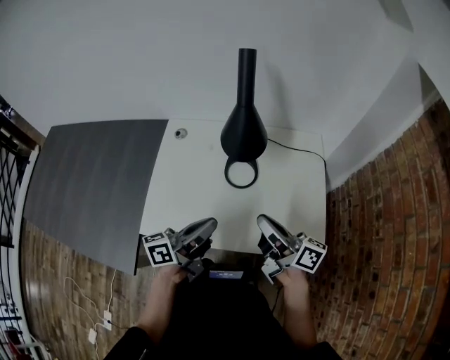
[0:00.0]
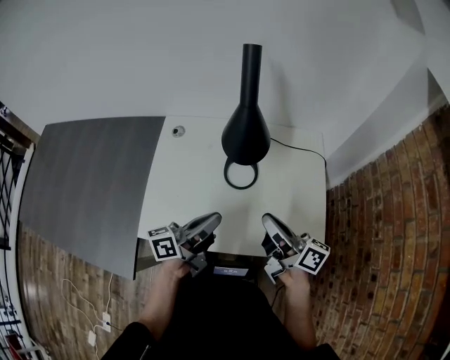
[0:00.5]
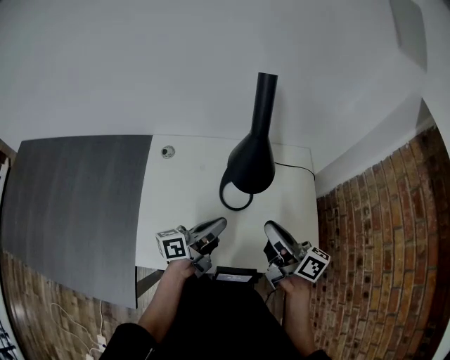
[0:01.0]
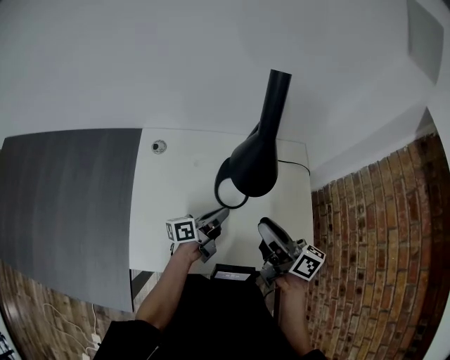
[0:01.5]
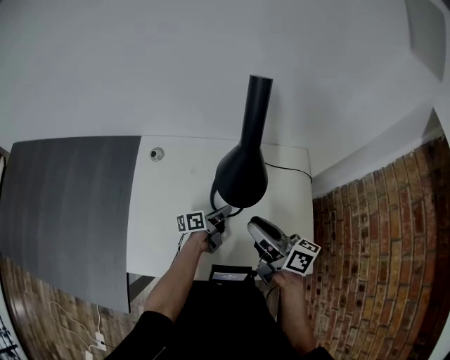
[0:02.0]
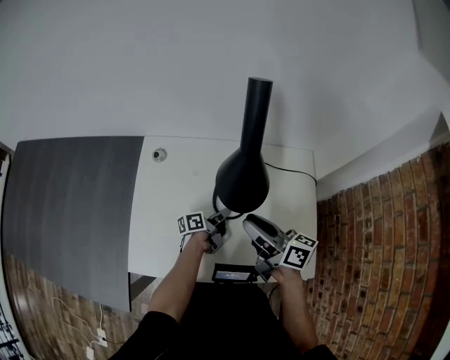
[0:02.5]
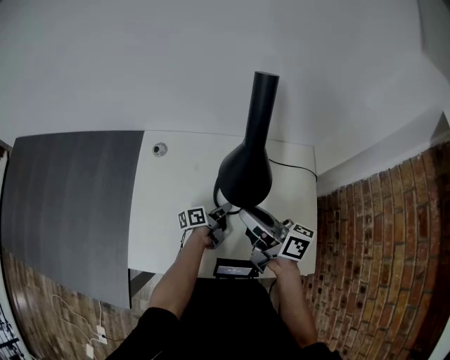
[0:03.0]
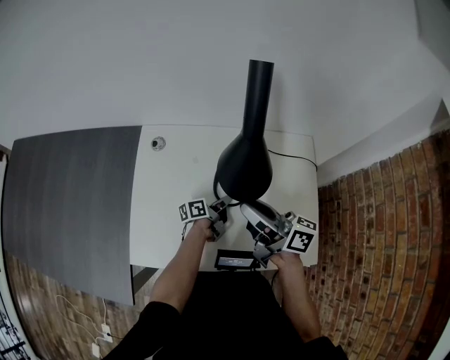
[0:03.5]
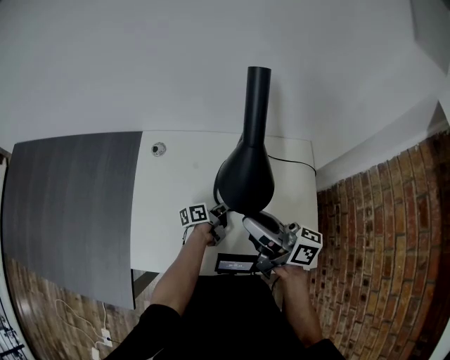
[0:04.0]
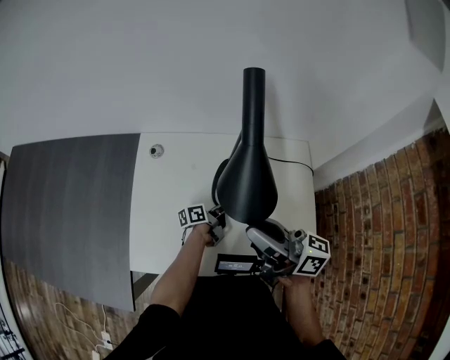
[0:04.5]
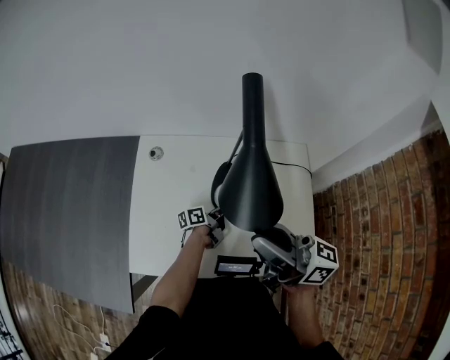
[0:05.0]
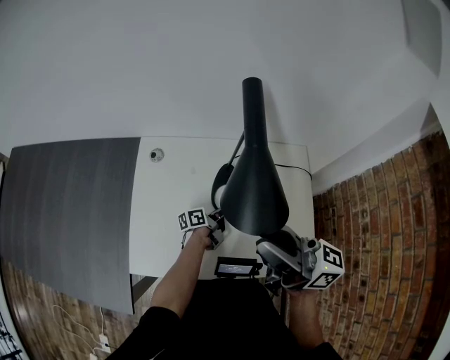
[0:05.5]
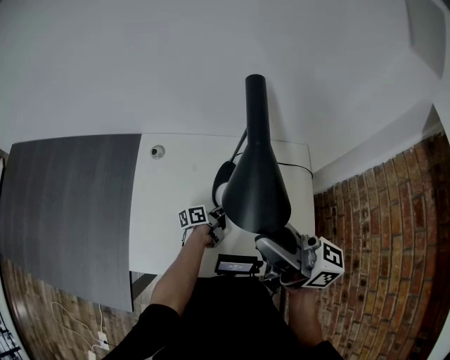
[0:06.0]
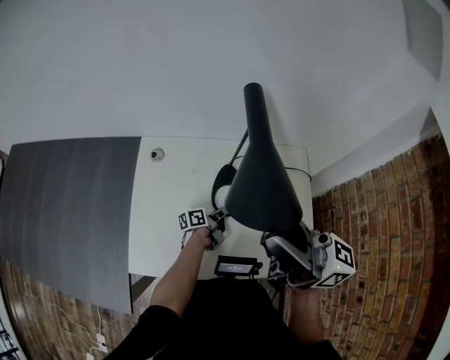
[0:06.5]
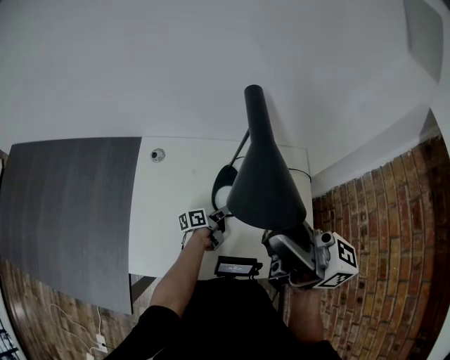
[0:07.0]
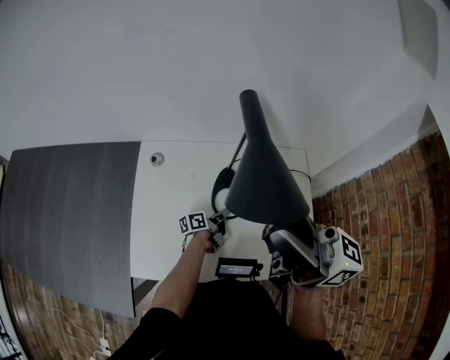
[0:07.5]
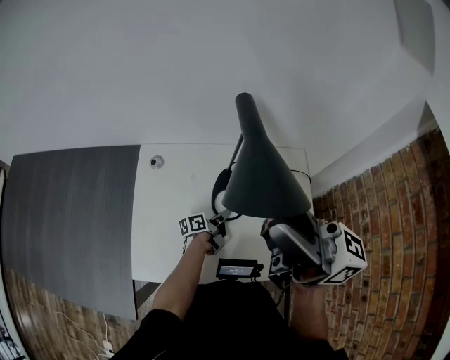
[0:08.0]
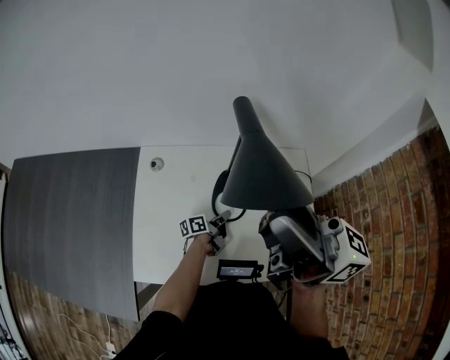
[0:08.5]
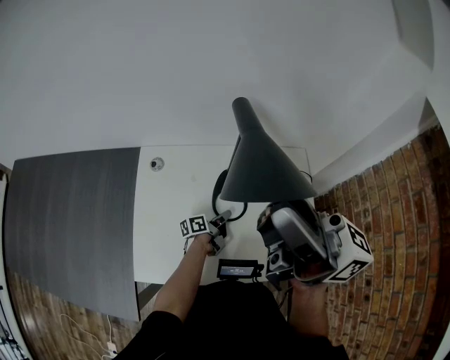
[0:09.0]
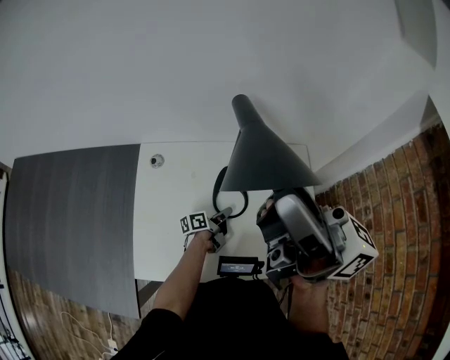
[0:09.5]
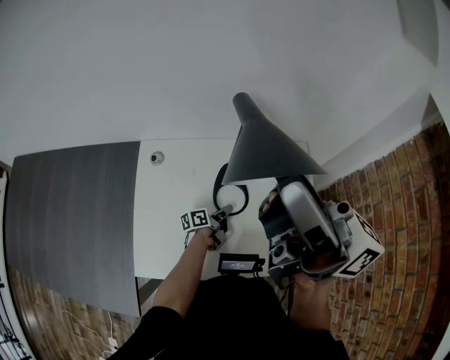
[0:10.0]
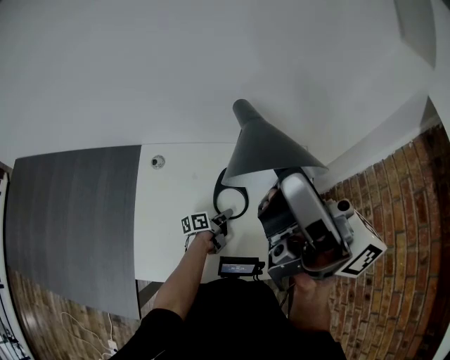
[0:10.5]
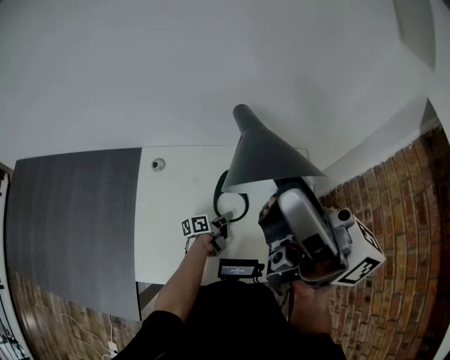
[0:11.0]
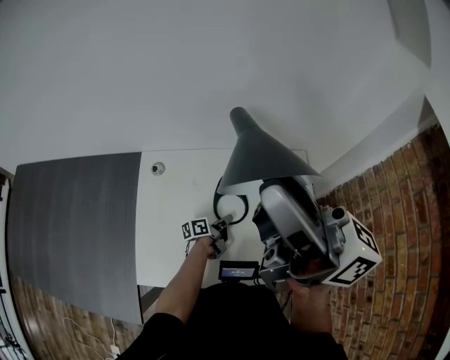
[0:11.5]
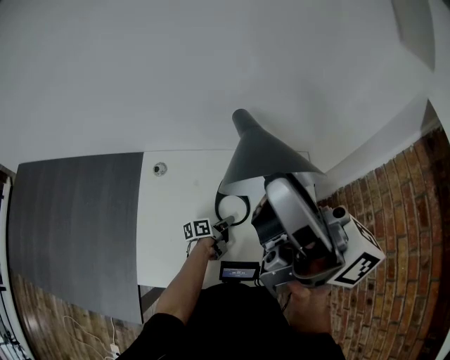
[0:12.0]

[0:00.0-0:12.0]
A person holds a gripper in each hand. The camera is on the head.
0:00.0 to 0:02.0: The right gripper heads forward, covering about 10 cm, and opens. Meanwhile the left gripper is displaced downward and forward by roughly 30 cm, and changes its angle by approximately 30 degrees.
0:02.0 to 0:04.0: The right gripper travels upward by roughly 5 cm.
0:04.0 to 0:06.0: The right gripper shifts roughly 10 cm upward.
0:06.0 to 0:08.0: The right gripper is displaced upward by roughly 10 cm.
0:08.0 to 0:10.0: The right gripper shifts by some 5 cm.
0:10.0 to 0:12.0: The grippers stay close to where they were, moving slightly.

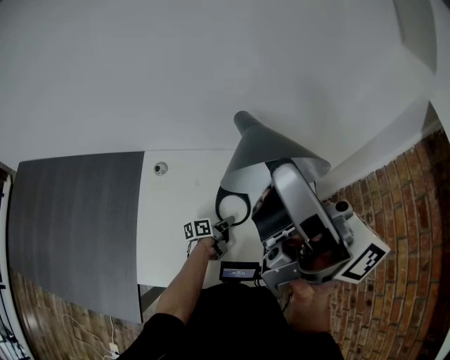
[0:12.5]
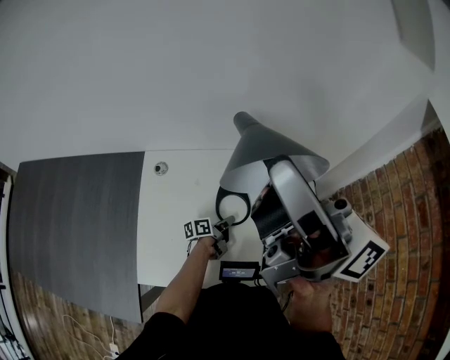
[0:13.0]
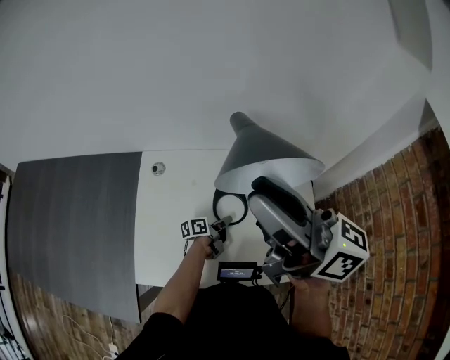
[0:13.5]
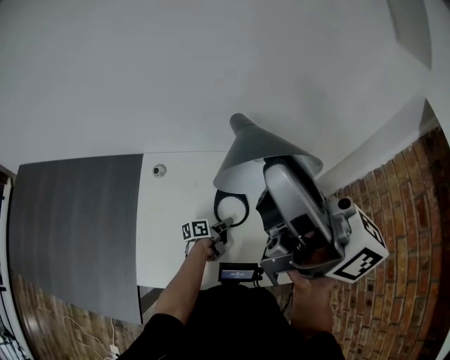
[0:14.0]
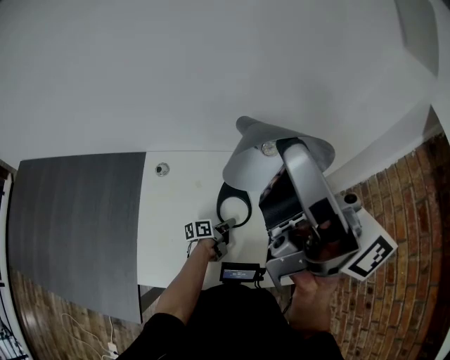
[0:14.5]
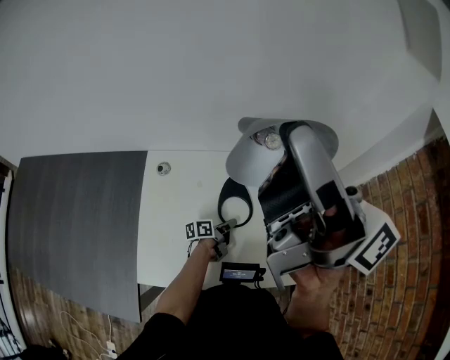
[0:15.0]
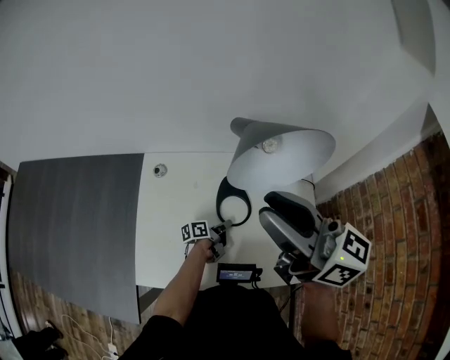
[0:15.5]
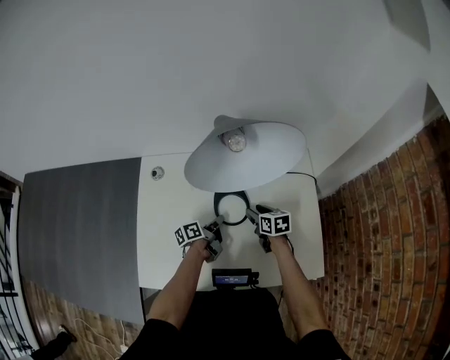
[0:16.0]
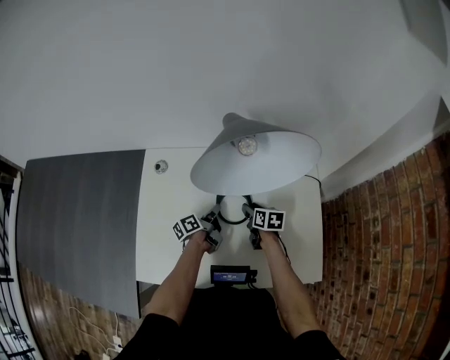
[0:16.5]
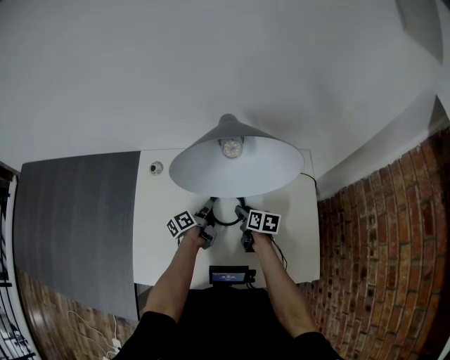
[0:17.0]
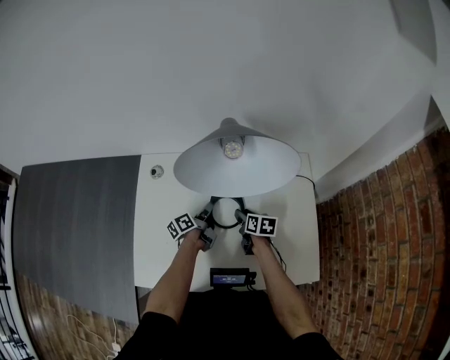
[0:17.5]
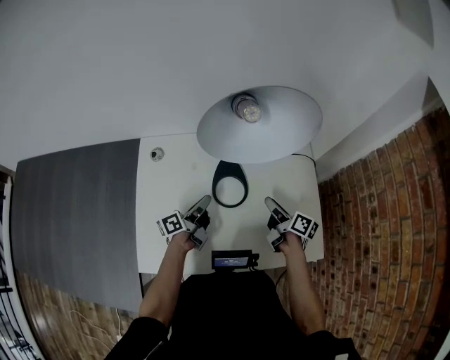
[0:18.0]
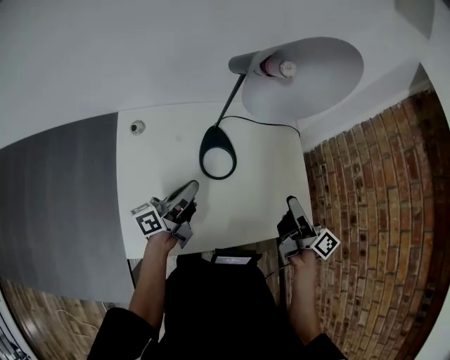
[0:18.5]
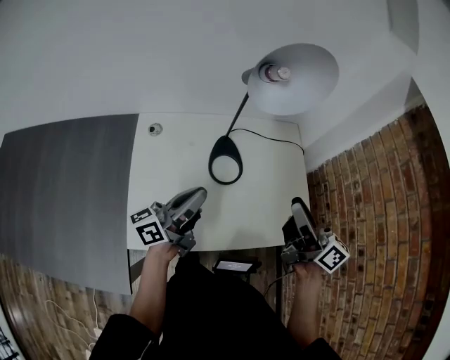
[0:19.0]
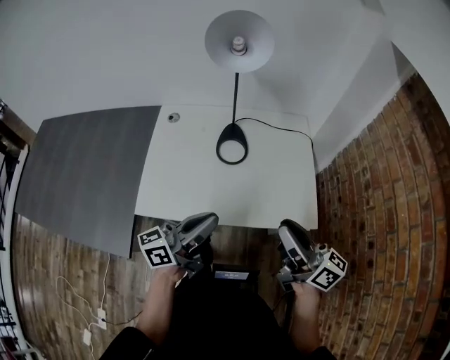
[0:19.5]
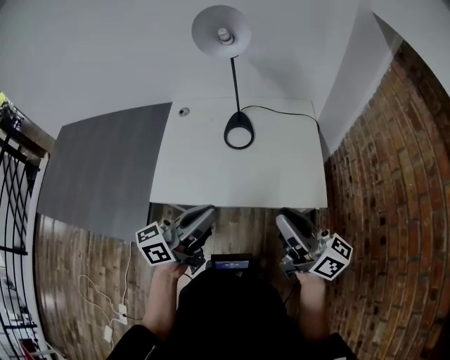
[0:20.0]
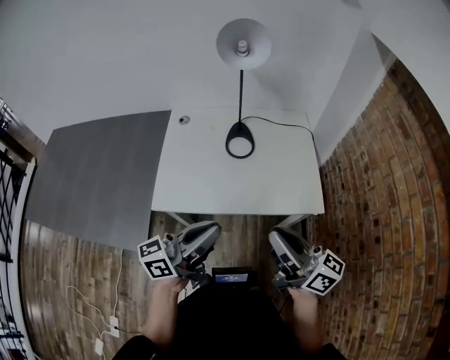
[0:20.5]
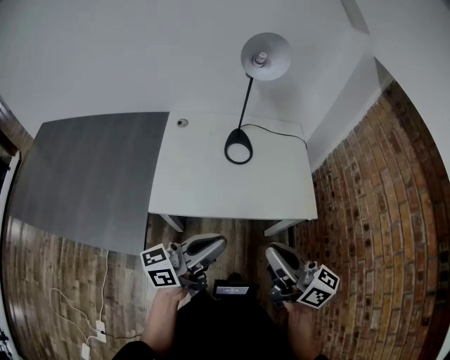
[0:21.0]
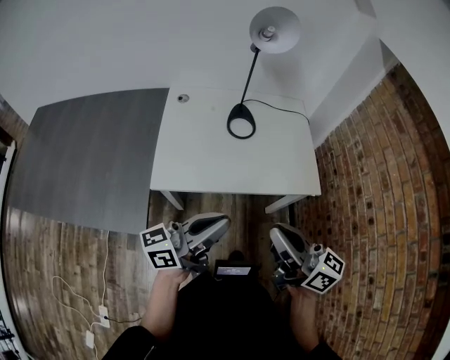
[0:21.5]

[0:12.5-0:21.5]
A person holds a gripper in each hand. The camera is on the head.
0:12.5 to 0:14.5: The right gripper moves about 5 cm downward and comes back.
0:14.5 to 0:17.0: The right gripper travels downward by roughly 60 cm, and tilts its fingers some 70 degrees downward. Meanwhile the left gripper heads to the left and forward, covering about 10 cm, and turns by some 20 degrees.
0:17.0 to 0:19.5: Both grippers travel together backward and upward, roughly 50 cm. The right gripper tips its fingers upward by roughly 50 degrees; the left gripper rotates about 50 degrees.
0:19.5 to 0:21.5: Both grippers move backward and to the left, about 15 cm.

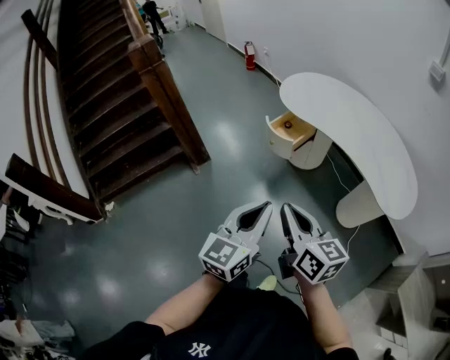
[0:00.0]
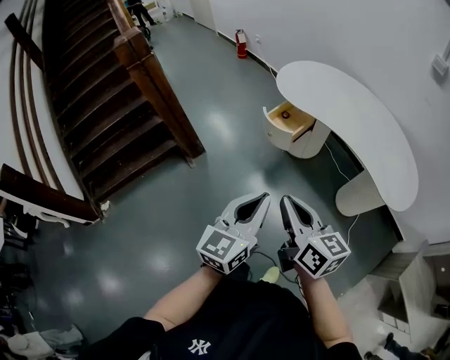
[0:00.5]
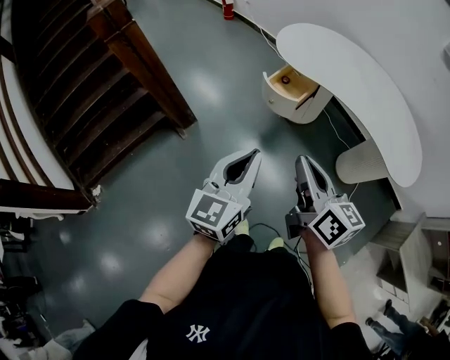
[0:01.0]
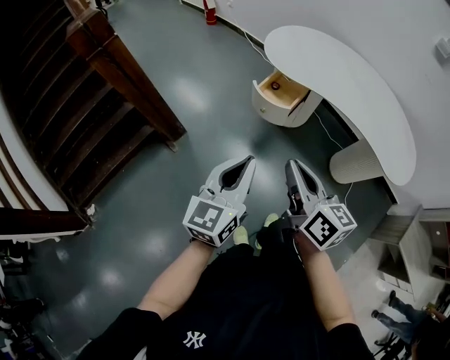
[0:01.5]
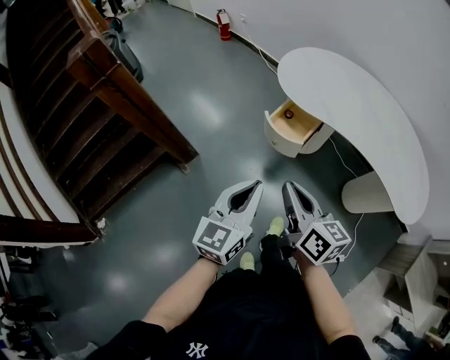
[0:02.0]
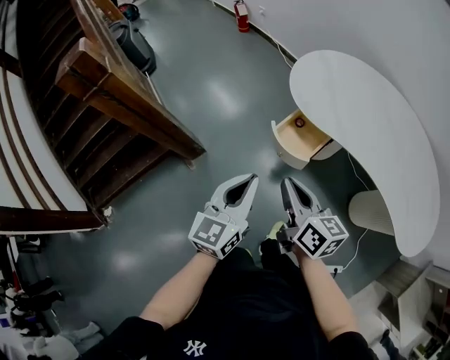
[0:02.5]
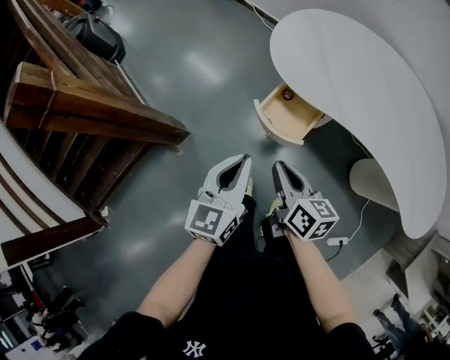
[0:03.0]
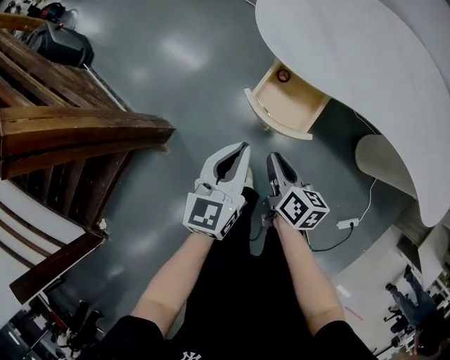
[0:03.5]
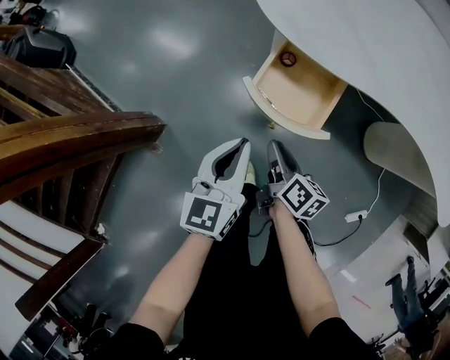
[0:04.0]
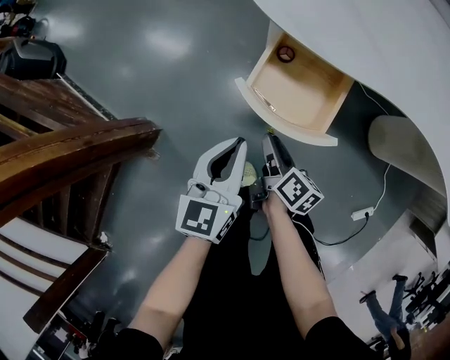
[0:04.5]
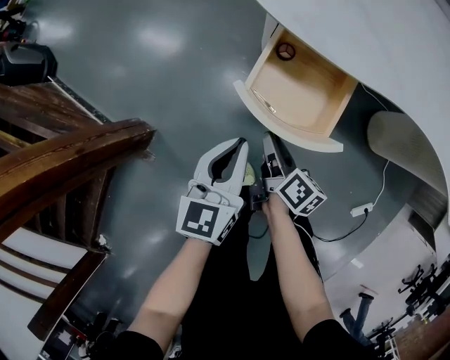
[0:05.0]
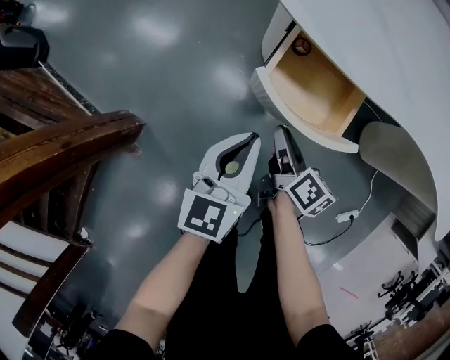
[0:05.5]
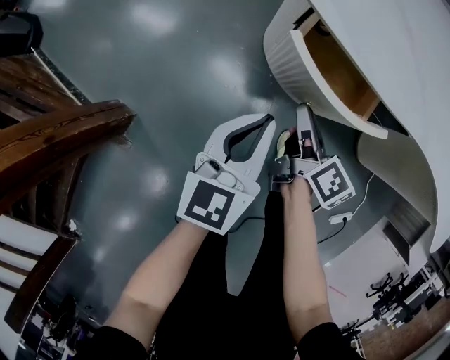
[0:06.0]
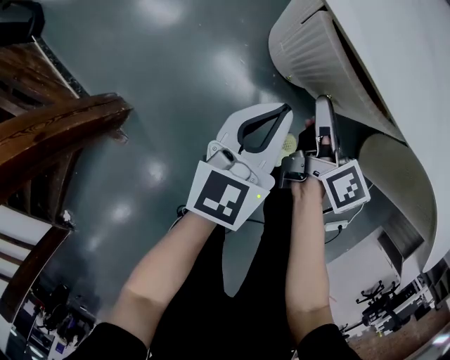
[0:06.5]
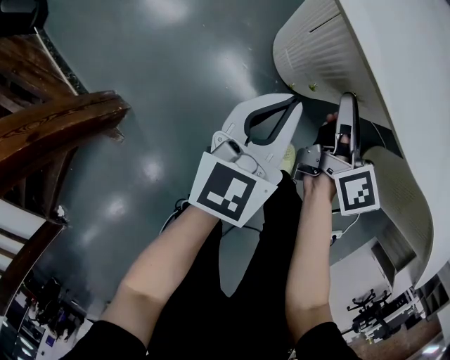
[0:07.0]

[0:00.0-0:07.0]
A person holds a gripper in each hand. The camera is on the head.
0:00.0 to 0:02.0: The right gripper travels forward by about 25 cm; the left gripper shifts about 30 cm forward and to the left.
0:02.0 to 0:03.5: The right gripper is displaced downward and forward by roughly 40 cm, and swivels approximately 30 degrees. Meanwhile the left gripper is displaced forward and downward by some 35 cm.
0:03.5 to 0:05.0: Both grippers travel together downward, about 15 cm. The right gripper changes its angle by roughly 20 degrees.
0:05.0 to 0:07.0: Both grippers travel together forward, about 20 cm. The right gripper changes its angle by some 30 degrees.
